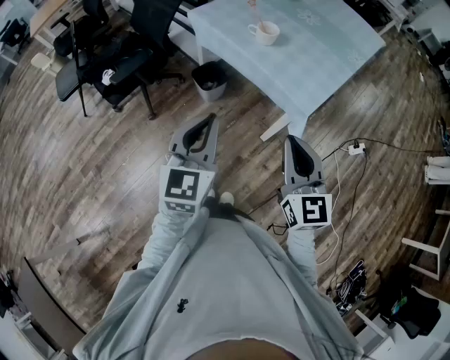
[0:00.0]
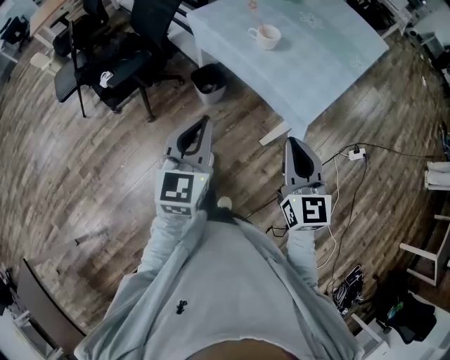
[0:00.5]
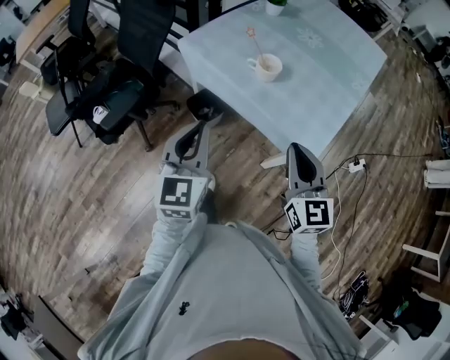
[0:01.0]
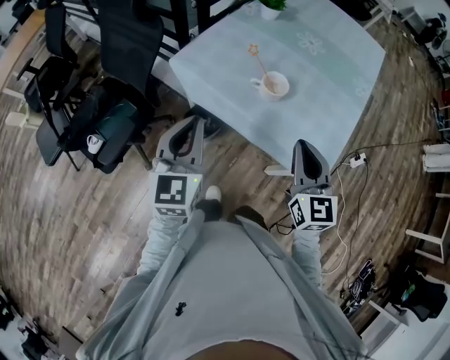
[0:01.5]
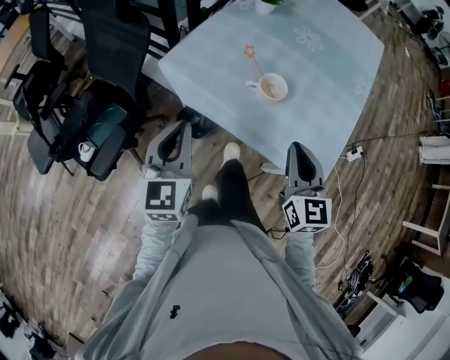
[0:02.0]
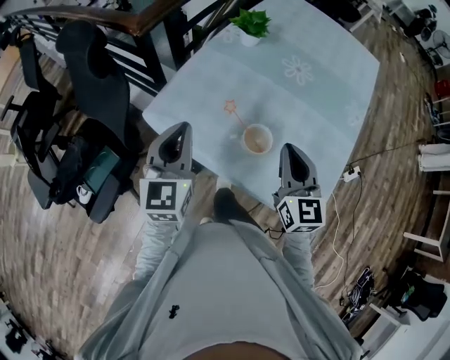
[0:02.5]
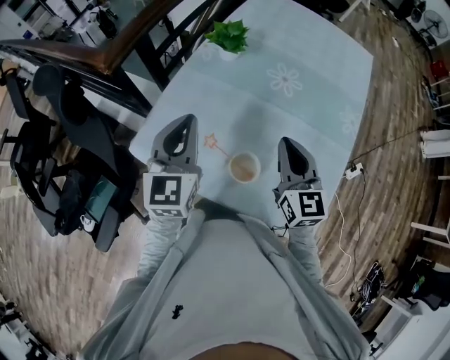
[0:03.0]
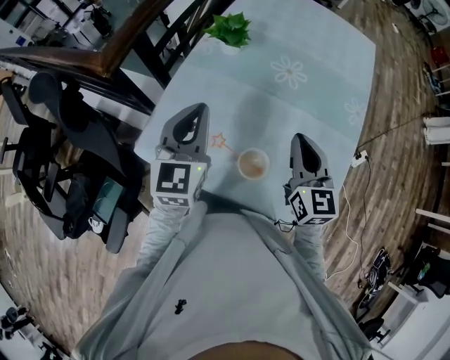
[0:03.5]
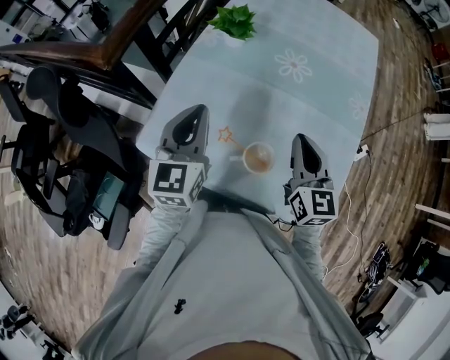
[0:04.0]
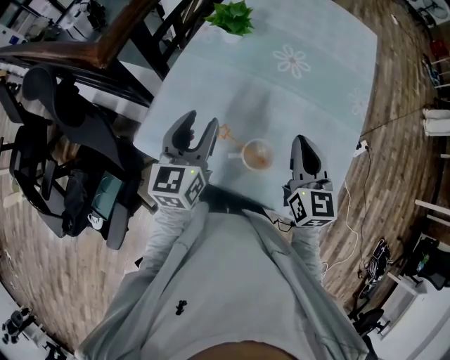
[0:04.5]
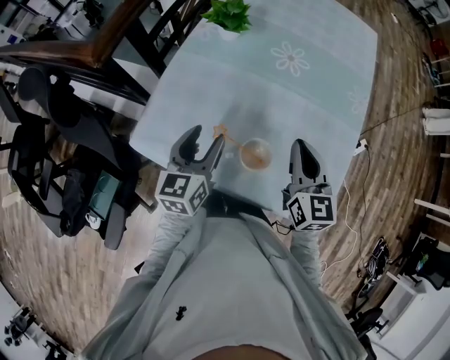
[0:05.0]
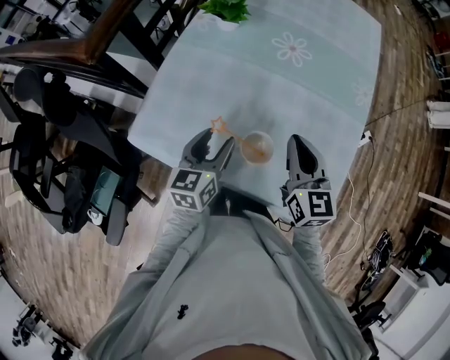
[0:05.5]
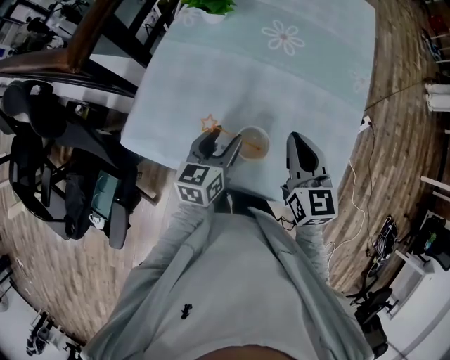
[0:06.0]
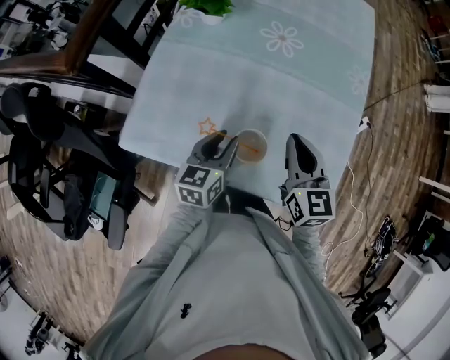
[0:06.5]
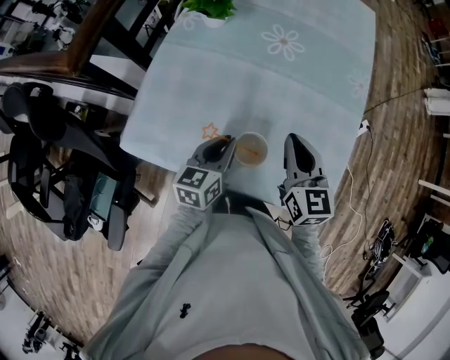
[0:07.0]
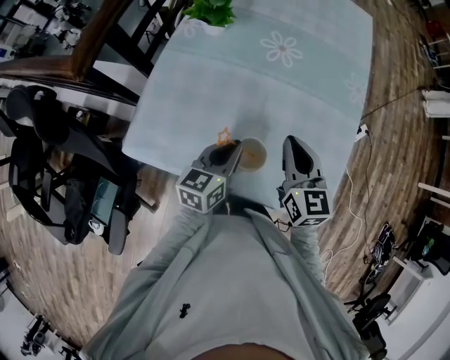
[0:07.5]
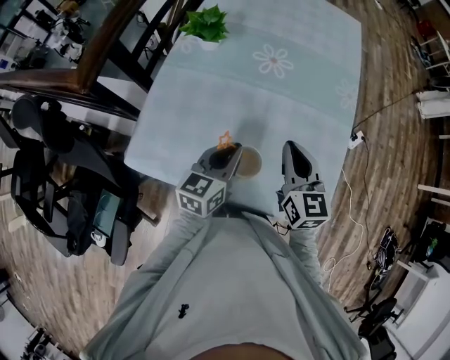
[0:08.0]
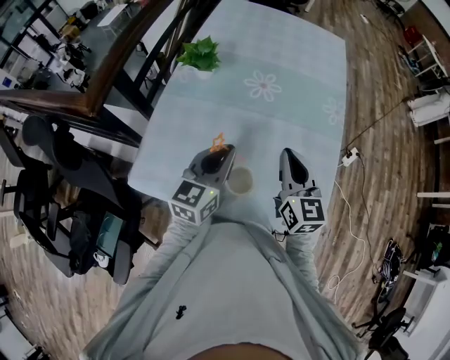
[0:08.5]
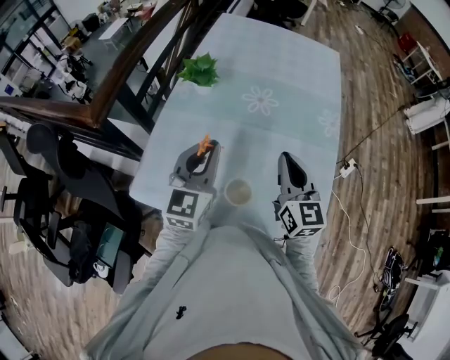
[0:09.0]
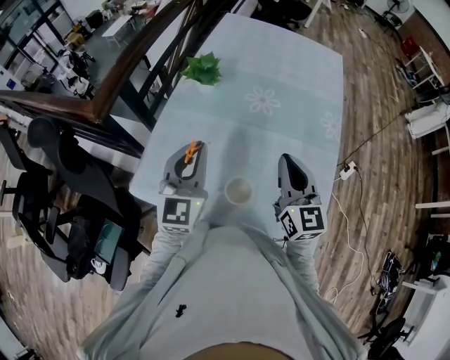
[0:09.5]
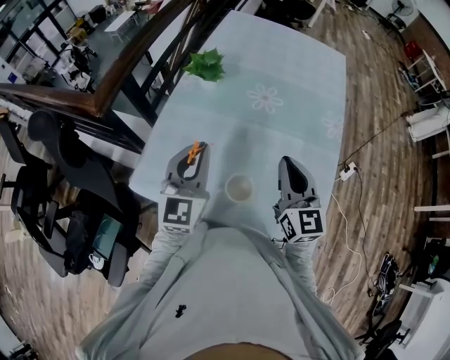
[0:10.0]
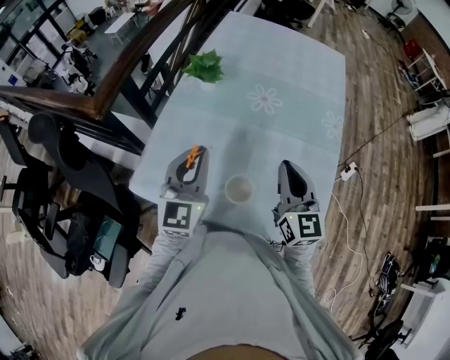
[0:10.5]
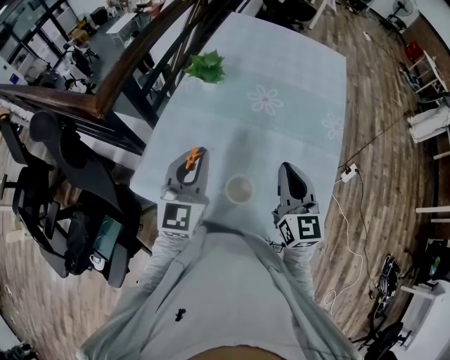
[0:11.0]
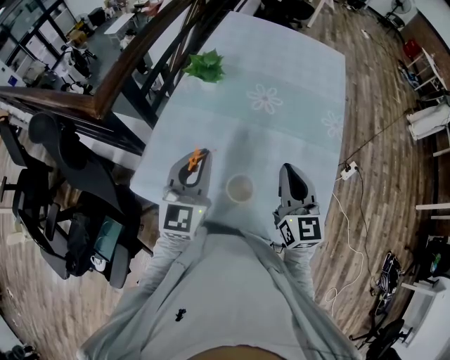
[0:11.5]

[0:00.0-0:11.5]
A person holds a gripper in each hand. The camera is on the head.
0:00.0 to 0:02.0: The grippers both shift forward by approximately 35 cm.
0:02.0 to 0:04.0: Both grippers travel together forward, approximately 30 cm.
0:04.0 to 0:06.0: The right gripper goes about 5 cm downward. Meanwhile the left gripper shifts some 20 cm downward and to the right, swivels some 30 degrees, and opens up.
0:06.0 to 0:07.5: The left gripper closes.
0:07.5 to 0:09.5: The right gripper is displaced upward by some 10 cm. The left gripper travels upward and to the left by roughly 20 cm, and swivels about 40 degrees.
0:09.5 to 0:11.5: The grippers make only small movements.

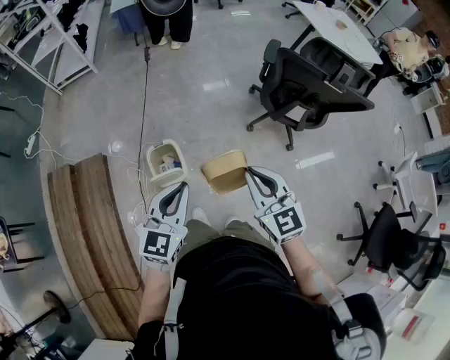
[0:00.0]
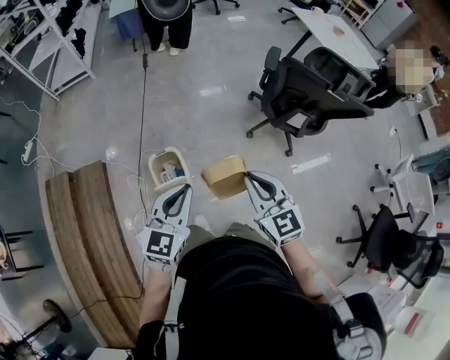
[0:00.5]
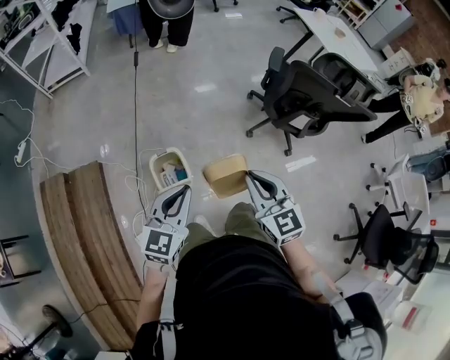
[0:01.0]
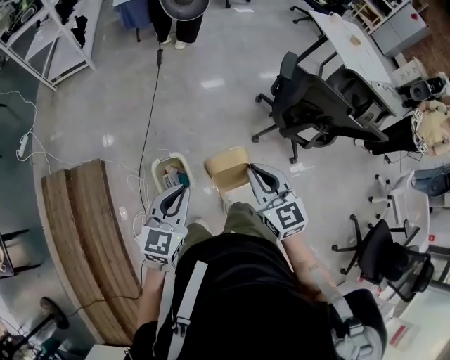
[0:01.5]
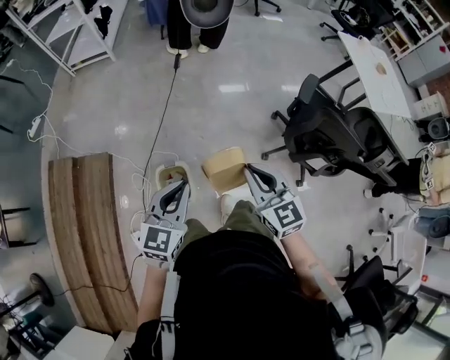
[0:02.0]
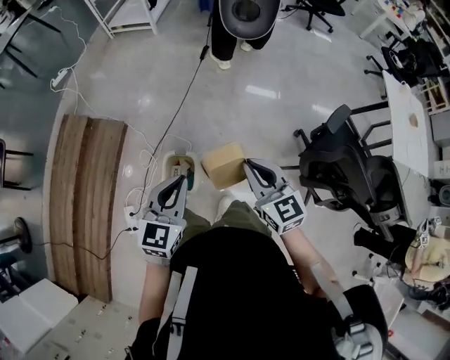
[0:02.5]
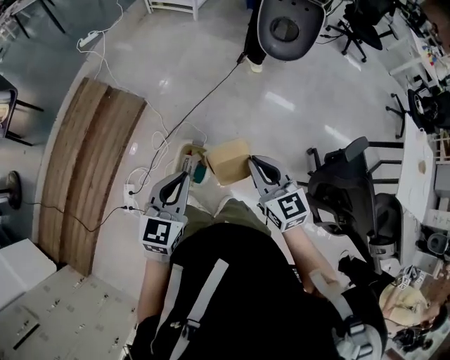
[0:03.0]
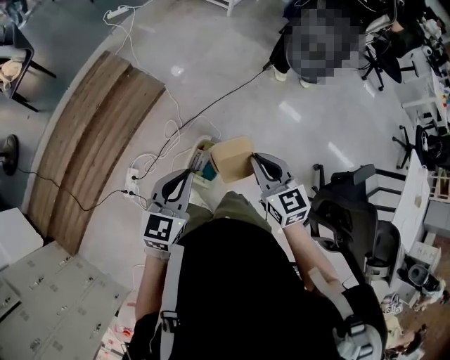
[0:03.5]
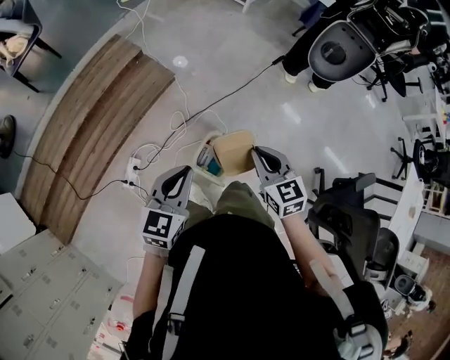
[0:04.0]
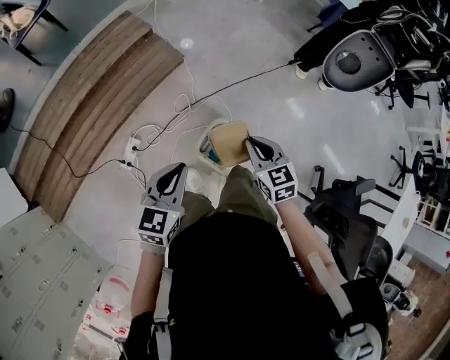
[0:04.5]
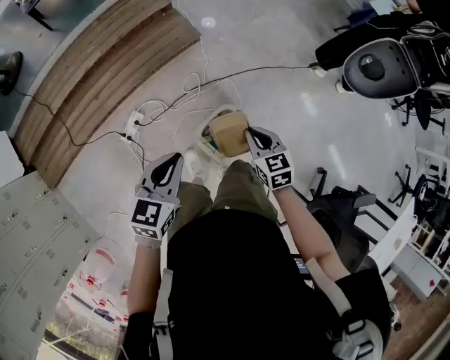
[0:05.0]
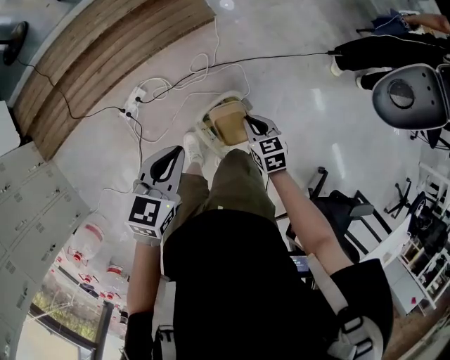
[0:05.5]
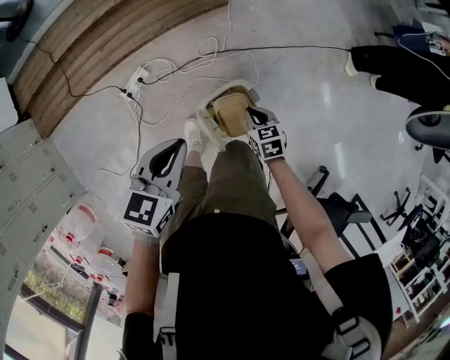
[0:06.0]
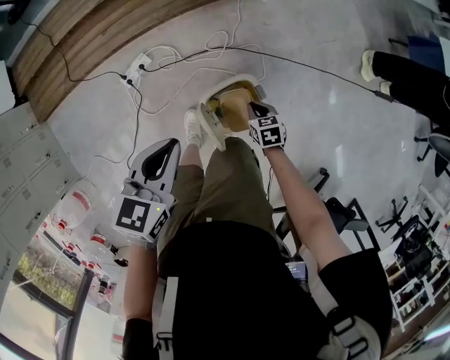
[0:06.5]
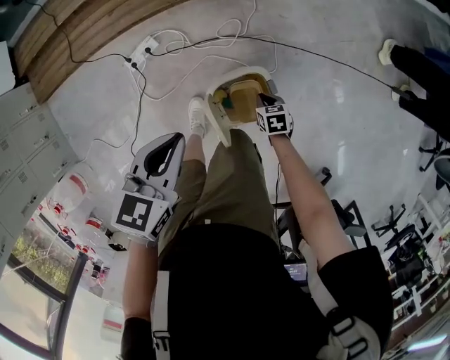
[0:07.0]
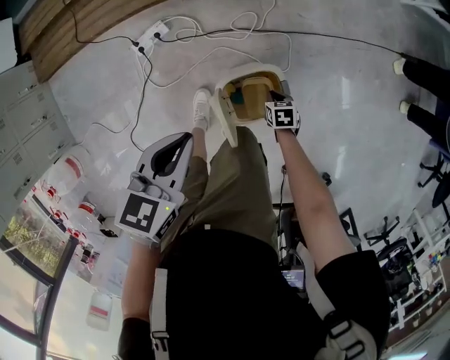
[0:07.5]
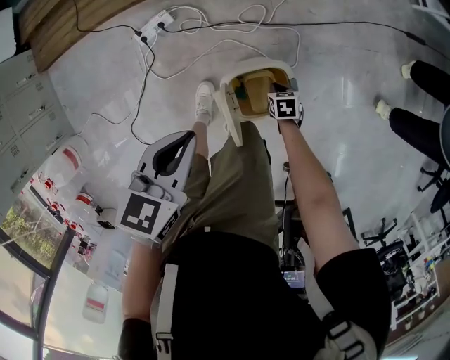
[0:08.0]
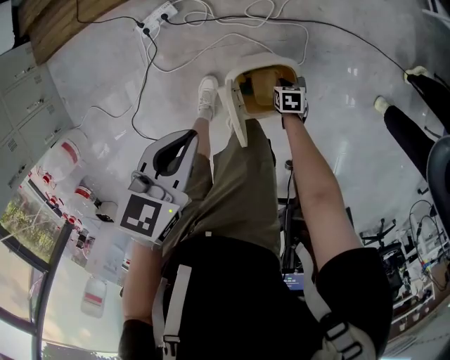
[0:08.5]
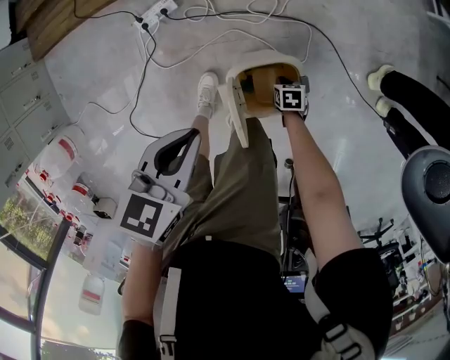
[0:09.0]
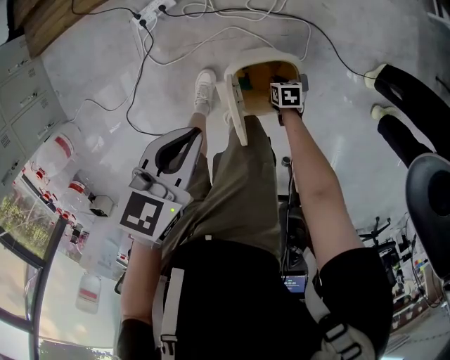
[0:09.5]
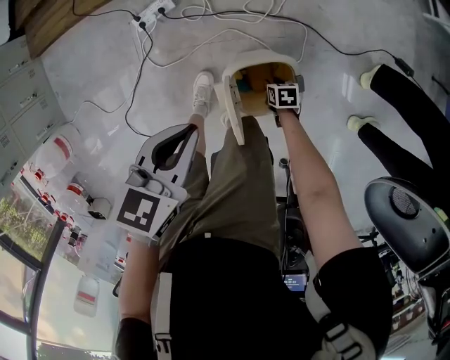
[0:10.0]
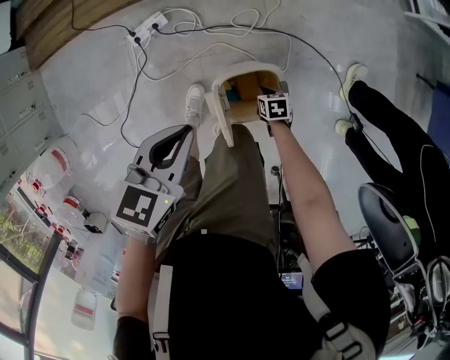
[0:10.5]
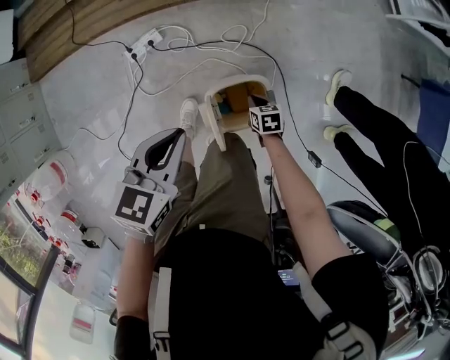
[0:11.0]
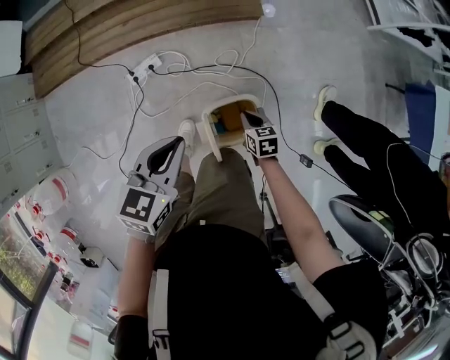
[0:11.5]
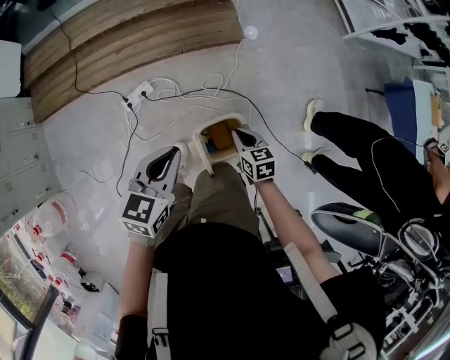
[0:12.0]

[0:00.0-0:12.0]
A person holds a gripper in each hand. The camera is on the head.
0:00.0 to 0:02.0: Both grippers move forward, roughly 25 cm.
0:02.0 to 0:04.0: The right gripper shifts by about 30 cm, and changes its angle by roughly 40 degrees, while the left gripper shifts by some 30 cm, and rotates roughly 40 degrees.
0:04.0 to 0:06.0: The left gripper travels downward by approximately 10 cm, and turns by approximately 30 degrees. The right gripper moves downward, roughly 30 cm, and changes its angle by approximately 40 degrees.
0:06.0 to 0:08.0: The left gripper shifts about 10 cm downward. Meanwhile the right gripper shifts some 25 cm downward, and swivels roughly 20 degrees.
0:08.0 to 0:10.0: The right gripper shifts by some 5 cm, and opens its fingers.
0:10.0 to 0:12.0: The right gripper moves upward, approximately 35 cm, rotates approximately 30 degrees, and closes up. The left gripper moves upward, approximately 15 cm.

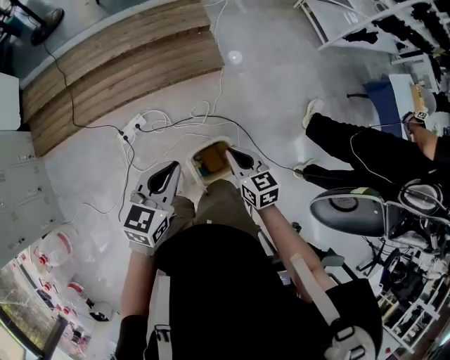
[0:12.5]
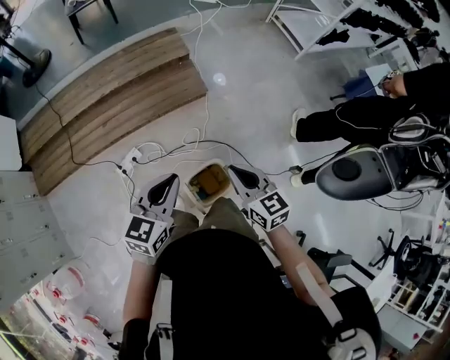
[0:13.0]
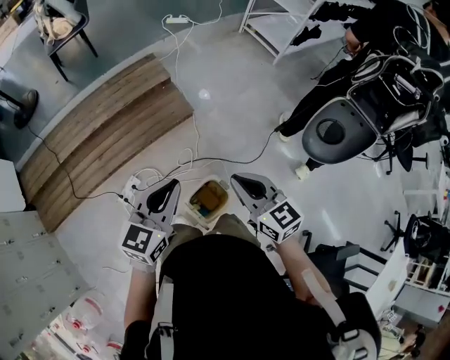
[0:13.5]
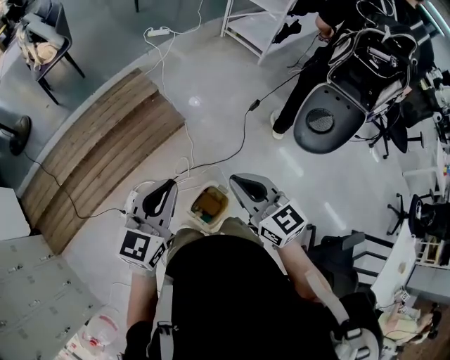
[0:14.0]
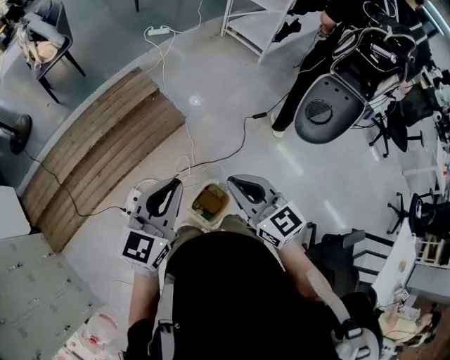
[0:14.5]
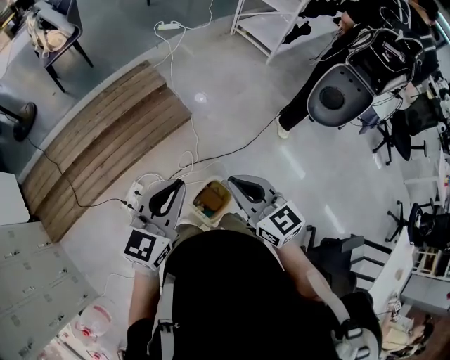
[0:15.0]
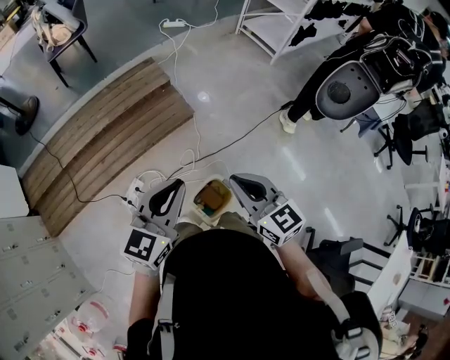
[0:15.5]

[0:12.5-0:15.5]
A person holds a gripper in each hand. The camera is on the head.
0:12.5 to 0:14.0: The right gripper moves upward, some 25 cm, and changes its angle by some 30 degrees; the left gripper travels upward and forward by roughly 20 cm, and turns by roughly 30 degrees.
0:14.0 to 0:15.5: The grippers move only a little.
